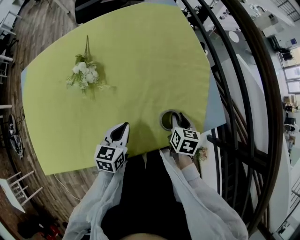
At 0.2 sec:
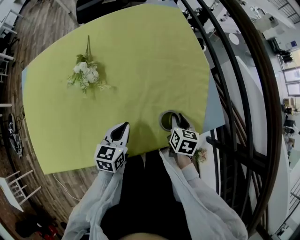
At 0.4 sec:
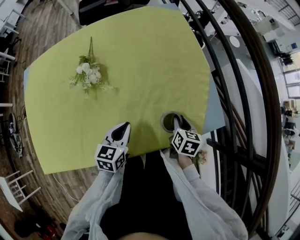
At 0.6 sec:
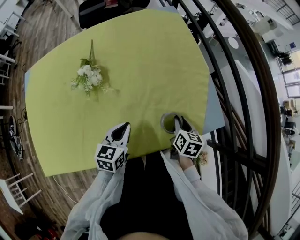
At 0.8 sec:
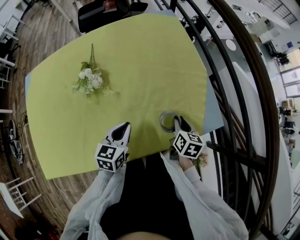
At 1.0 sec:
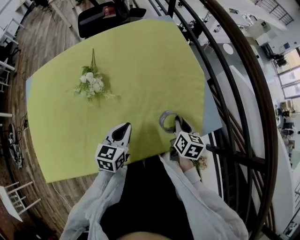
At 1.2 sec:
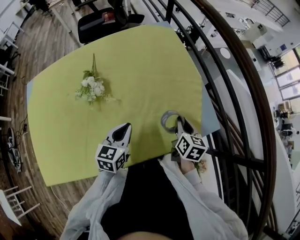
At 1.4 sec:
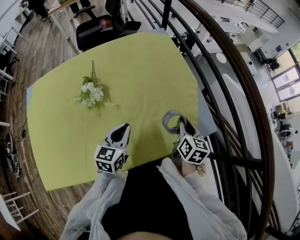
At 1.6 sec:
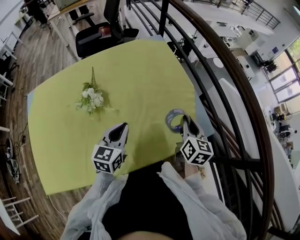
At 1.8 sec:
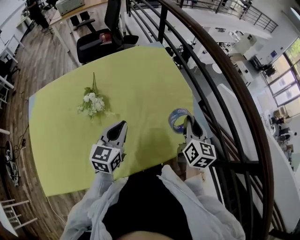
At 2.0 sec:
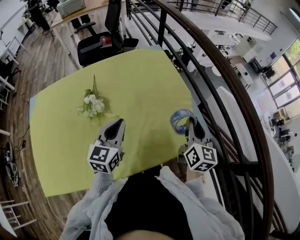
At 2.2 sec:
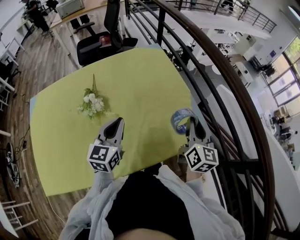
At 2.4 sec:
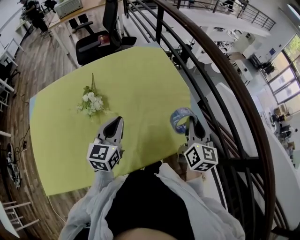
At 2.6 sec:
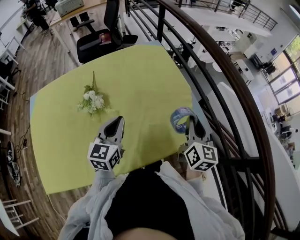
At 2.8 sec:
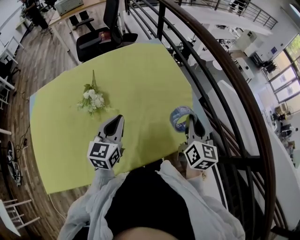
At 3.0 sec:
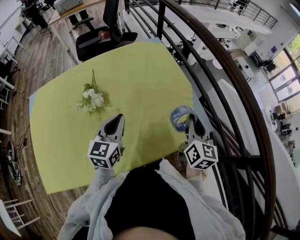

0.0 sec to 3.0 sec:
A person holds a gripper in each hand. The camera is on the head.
0.0 sec to 1.6 sec: The left gripper heads upward, covering about 10 cm. Meanwhile the right gripper goes about 20 cm upward, and rotates roughly 30 degrees.
1.6 sec to 3.0 sec: Both grippers move upward, roughly 5 cm.

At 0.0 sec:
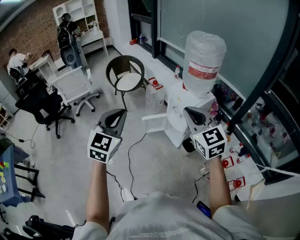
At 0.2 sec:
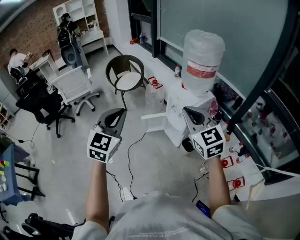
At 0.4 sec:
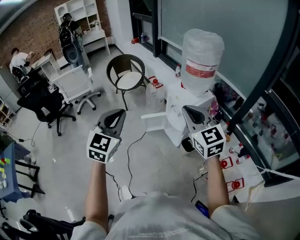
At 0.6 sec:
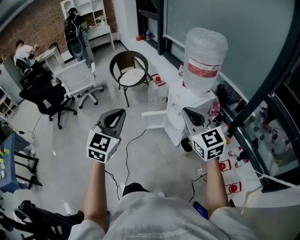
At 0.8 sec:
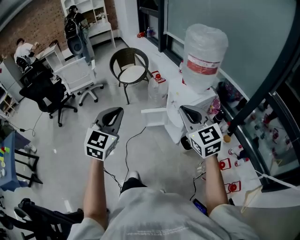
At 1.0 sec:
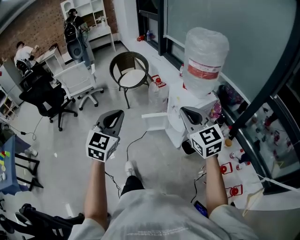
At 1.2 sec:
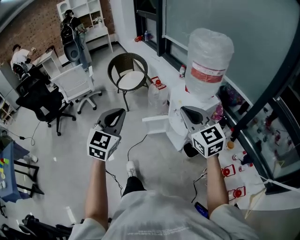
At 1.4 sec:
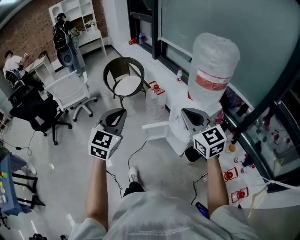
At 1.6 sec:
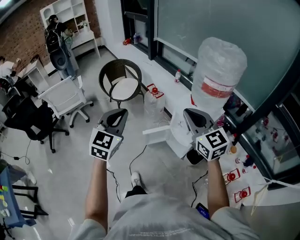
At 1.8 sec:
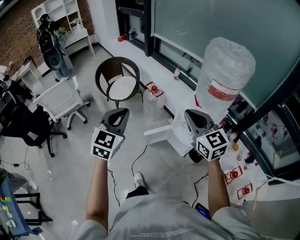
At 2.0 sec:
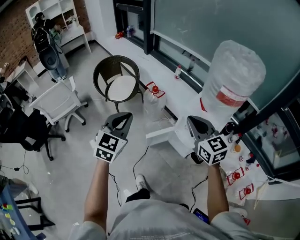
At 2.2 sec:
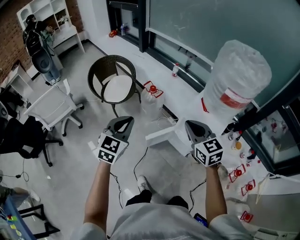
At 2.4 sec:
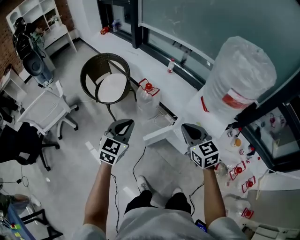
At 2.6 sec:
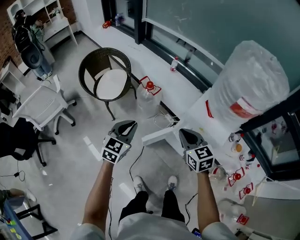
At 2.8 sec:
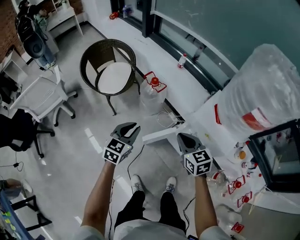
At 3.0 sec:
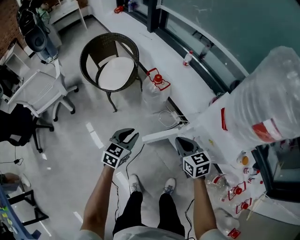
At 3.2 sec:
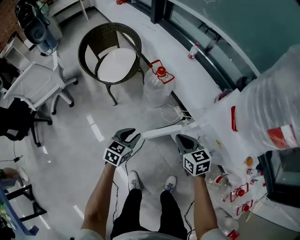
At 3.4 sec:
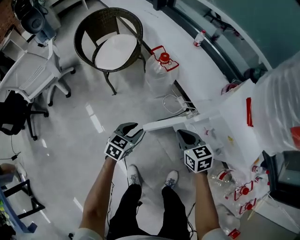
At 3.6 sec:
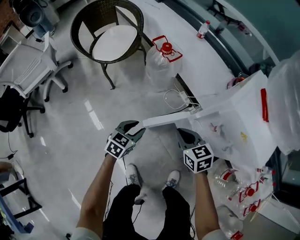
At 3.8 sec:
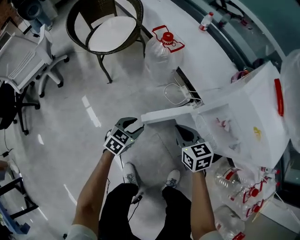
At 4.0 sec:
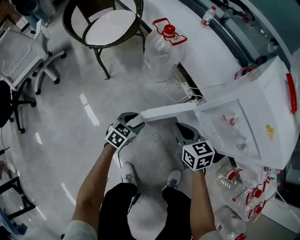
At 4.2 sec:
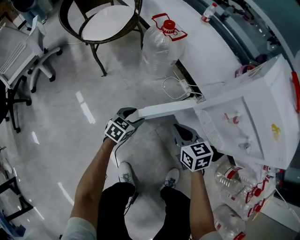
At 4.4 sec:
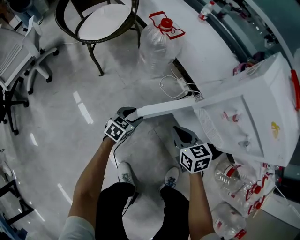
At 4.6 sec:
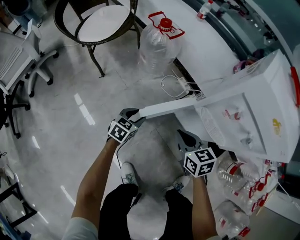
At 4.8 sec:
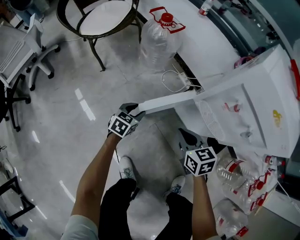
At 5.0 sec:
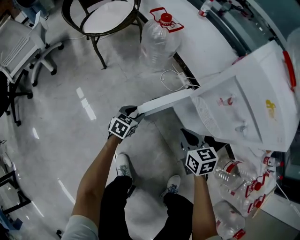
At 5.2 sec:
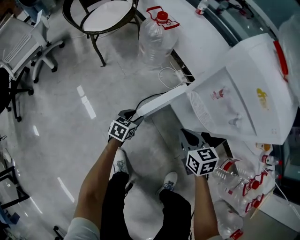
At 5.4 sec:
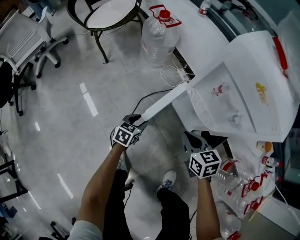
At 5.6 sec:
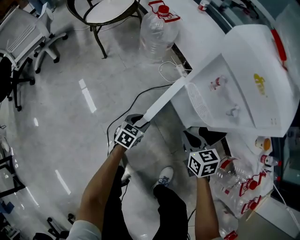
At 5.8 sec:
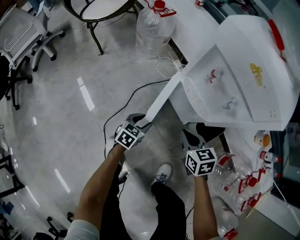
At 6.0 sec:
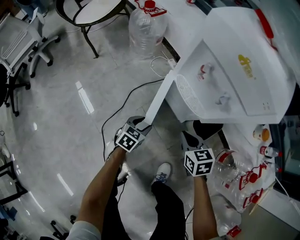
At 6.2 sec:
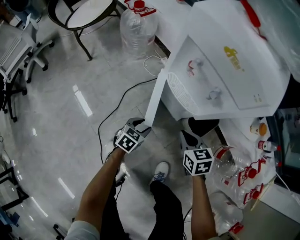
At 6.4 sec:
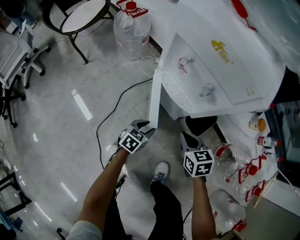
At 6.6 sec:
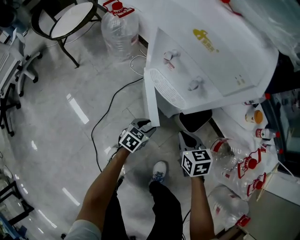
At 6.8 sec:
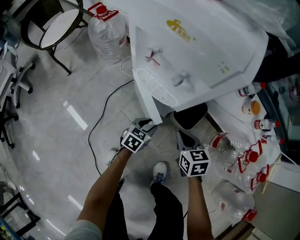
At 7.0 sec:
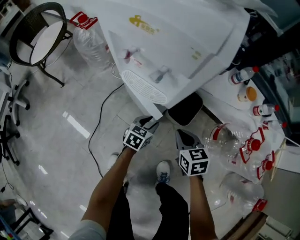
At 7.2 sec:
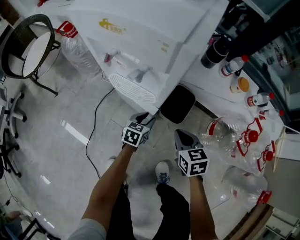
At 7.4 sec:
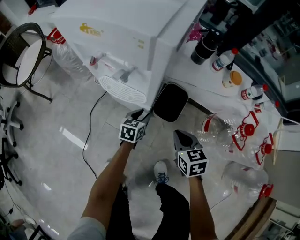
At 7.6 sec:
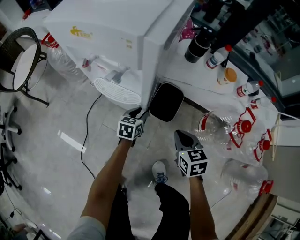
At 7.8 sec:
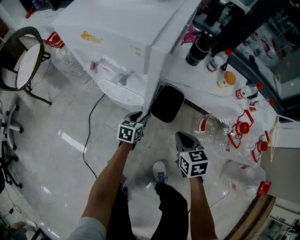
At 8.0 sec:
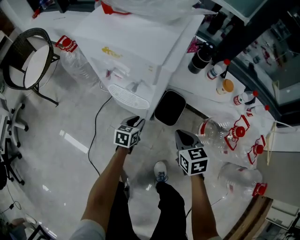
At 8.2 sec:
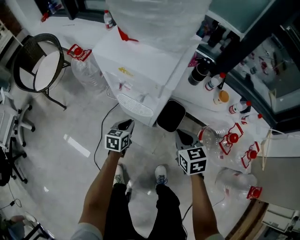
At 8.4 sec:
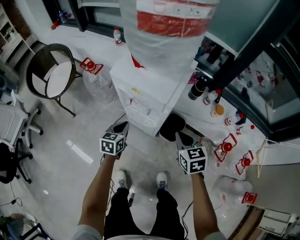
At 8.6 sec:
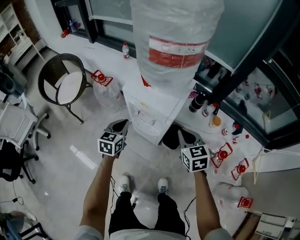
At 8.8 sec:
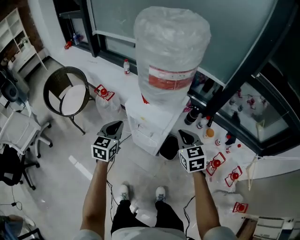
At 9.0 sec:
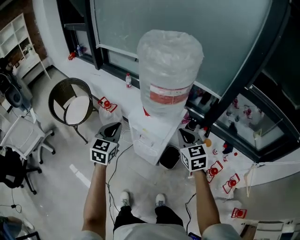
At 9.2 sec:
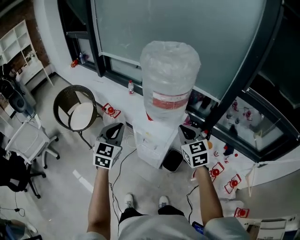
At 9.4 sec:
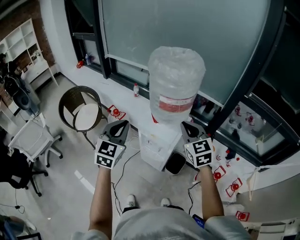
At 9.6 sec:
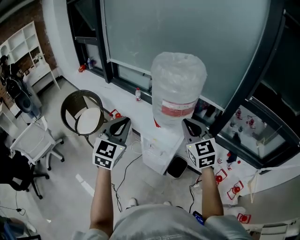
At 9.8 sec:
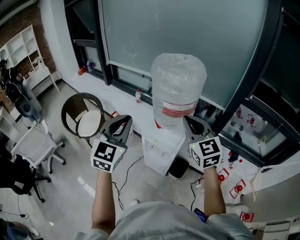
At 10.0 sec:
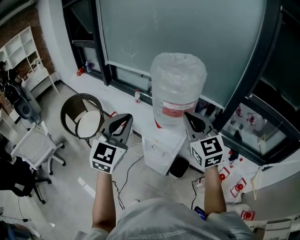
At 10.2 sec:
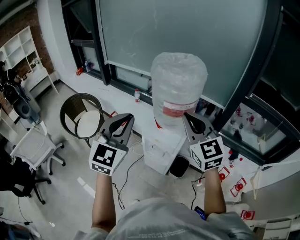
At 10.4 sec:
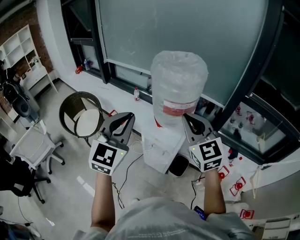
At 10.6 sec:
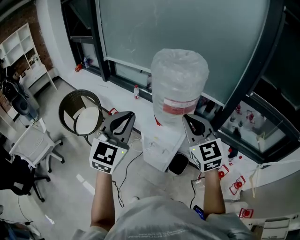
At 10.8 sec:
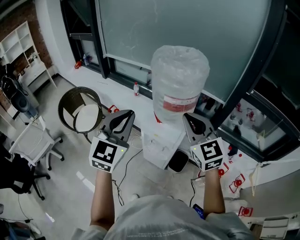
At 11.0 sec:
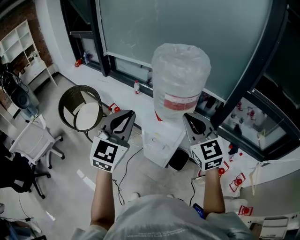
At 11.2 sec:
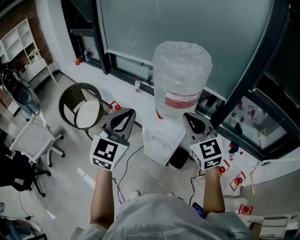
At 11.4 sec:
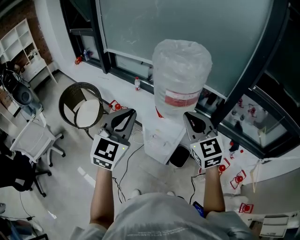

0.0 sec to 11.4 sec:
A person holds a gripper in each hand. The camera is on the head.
0.0 sec to 1.4 sec: The grippers both shift forward by roughly 15 cm.
1.4 sec to 2.8 sec: The left gripper heads forward and downward, covering about 40 cm, and changes its angle by approximately 30 degrees, while the right gripper heads downward and forward, covering some 40 cm, and rotates roughly 30 degrees.
2.8 sec to 4.2 sec: The two grippers go some 40 cm downward. The left gripper swivels some 20 degrees, and opens.
4.2 sec to 5.6 sec: The left gripper heads backward and to the right, covering some 20 cm, while the right gripper is displaced to the right and backward by about 20 cm.
5.6 sec to 7.2 sec: The left gripper changes place by roughly 30 cm, and turns by roughly 20 degrees. The right gripper moves about 25 cm, and swivels approximately 30 degrees.
7.2 sec to 8.6 sec: The left gripper heads upward and to the left, covering some 50 cm, swivels roughly 20 degrees, and closes up. The right gripper is displaced upward by roughly 40 cm.
8.6 sec to 10.0 sec: The two grippers go roughly 40 cm upward. The right gripper rotates approximately 30 degrees. Meanwhile the left gripper rotates approximately 40 degrees.
10.0 sec to 11.4 sec: The grippers move only a little.

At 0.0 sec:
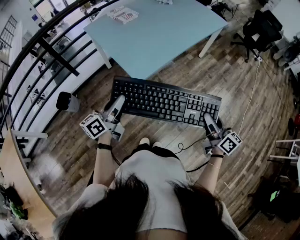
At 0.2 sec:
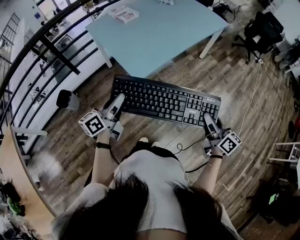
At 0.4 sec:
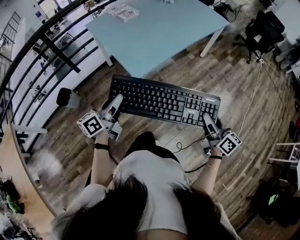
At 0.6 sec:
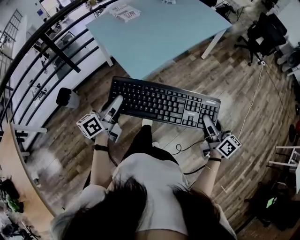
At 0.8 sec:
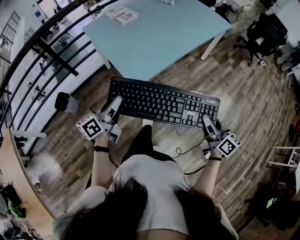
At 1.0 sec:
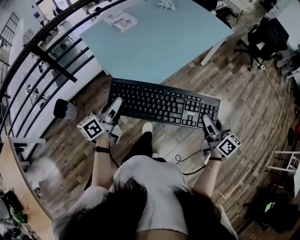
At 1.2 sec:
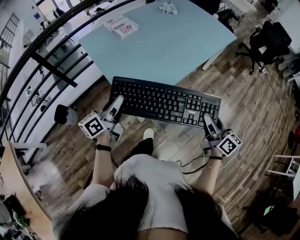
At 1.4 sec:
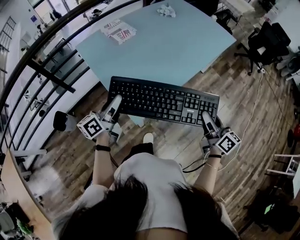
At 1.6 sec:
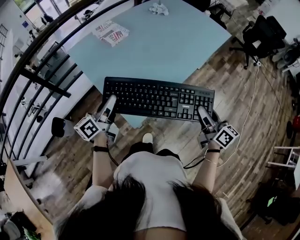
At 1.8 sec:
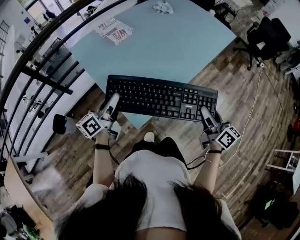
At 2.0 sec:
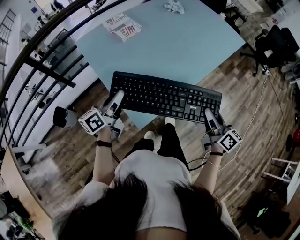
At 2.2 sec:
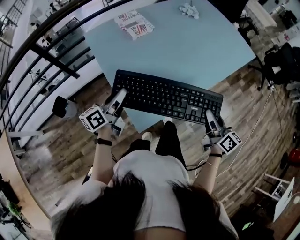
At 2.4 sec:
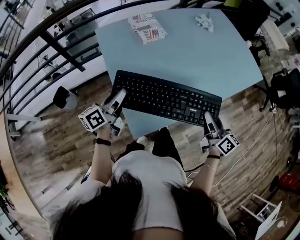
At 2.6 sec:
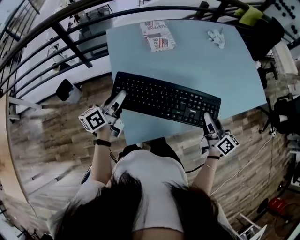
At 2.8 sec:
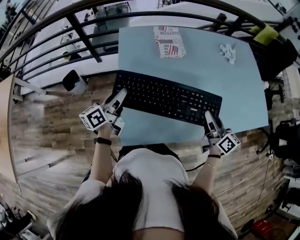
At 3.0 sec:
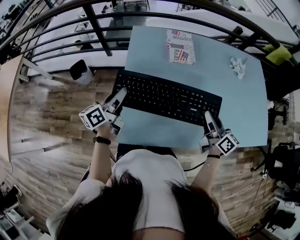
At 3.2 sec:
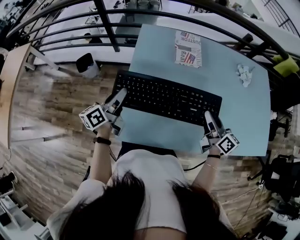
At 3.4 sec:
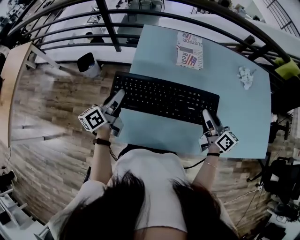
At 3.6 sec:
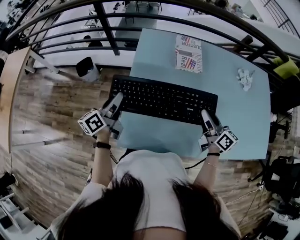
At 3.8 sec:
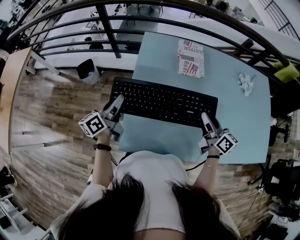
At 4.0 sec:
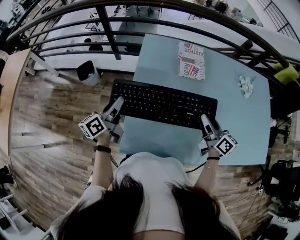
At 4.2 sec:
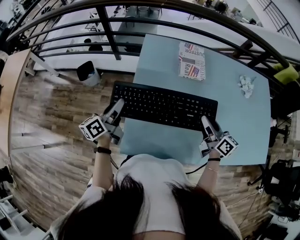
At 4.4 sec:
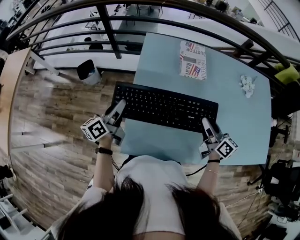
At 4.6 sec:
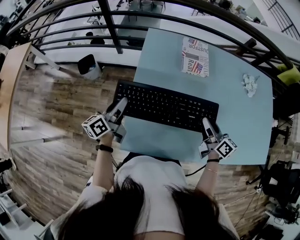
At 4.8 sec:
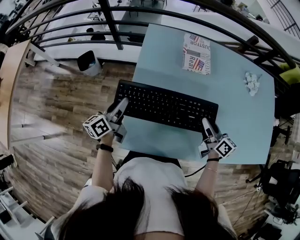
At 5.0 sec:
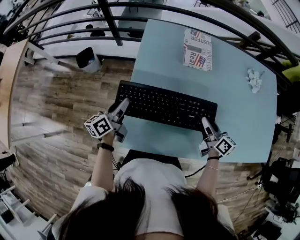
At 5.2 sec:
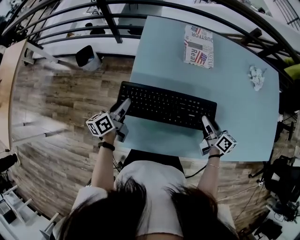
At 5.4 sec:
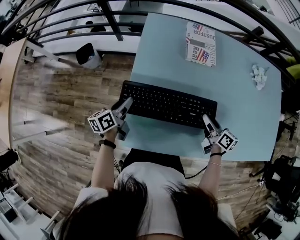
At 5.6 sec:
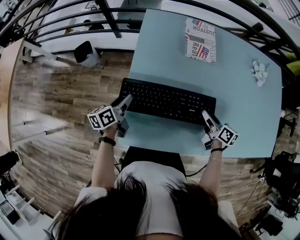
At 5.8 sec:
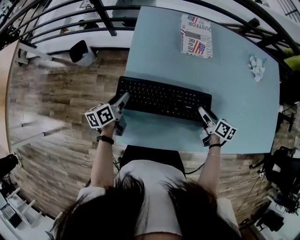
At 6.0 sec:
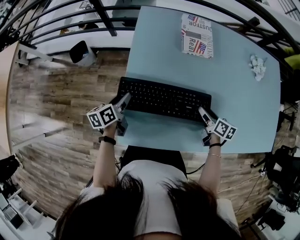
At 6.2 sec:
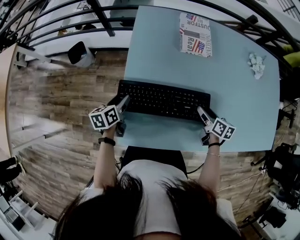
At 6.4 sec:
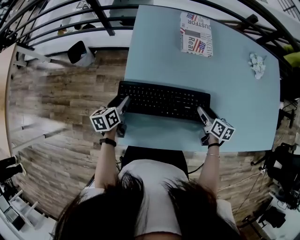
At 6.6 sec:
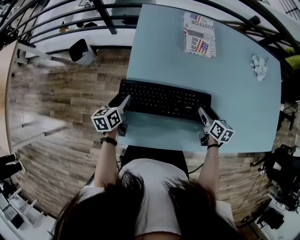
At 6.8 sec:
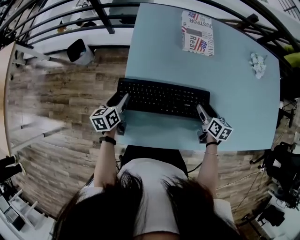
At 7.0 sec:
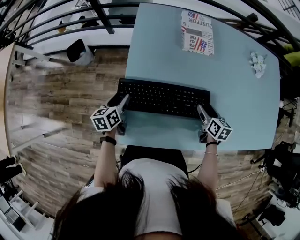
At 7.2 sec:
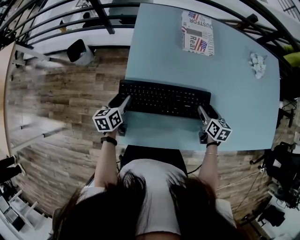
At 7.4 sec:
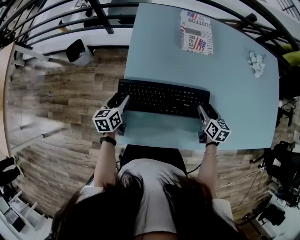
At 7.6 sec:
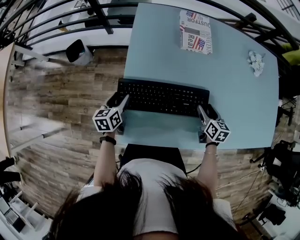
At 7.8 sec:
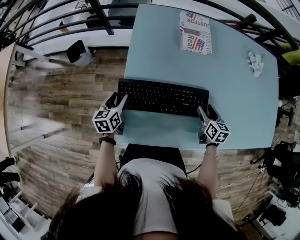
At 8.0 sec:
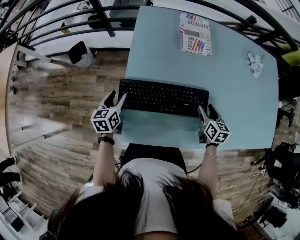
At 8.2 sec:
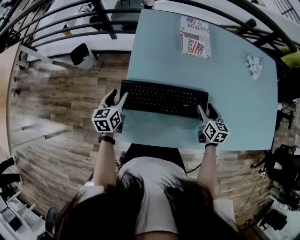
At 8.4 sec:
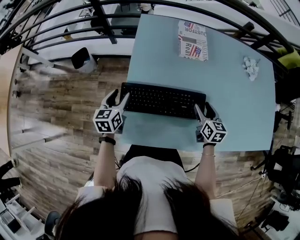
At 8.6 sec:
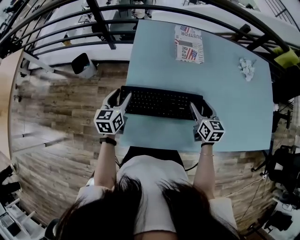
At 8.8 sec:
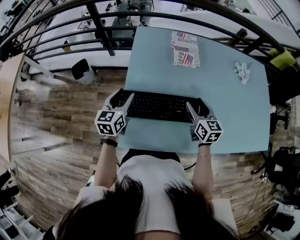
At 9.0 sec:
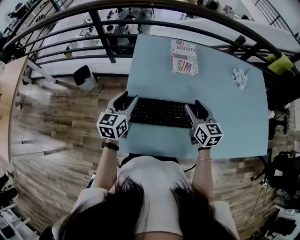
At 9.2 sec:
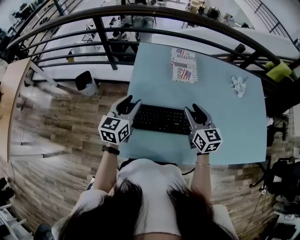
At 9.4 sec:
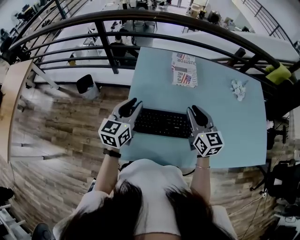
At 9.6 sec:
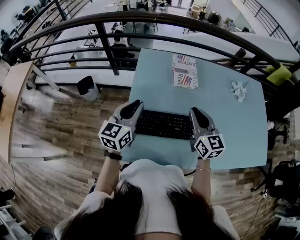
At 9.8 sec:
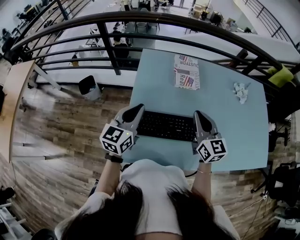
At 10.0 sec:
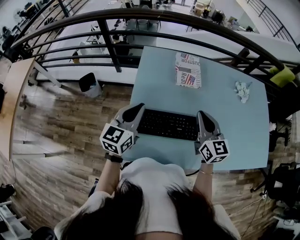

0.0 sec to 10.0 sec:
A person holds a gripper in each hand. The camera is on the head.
0.0 sec to 1.4 sec: The grippers both shift forward by about 25 cm.
1.4 sec to 2.8 sec: The left gripper moves roughly 15 cm, and changes its angle by some 30 degrees. Meanwhile the right gripper changes place by roughly 35 cm, and changes its angle by some 30 degrees.
2.8 sec to 4.2 sec: The right gripper heads forward, covering roughly 10 cm; the left gripper heads to the left, covering approximately 5 cm.
4.2 sec to 5.8 sec: The grippers both shift downward by some 15 cm. The left gripper changes its angle by about 20 degrees; the right gripper rotates about 30 degrees.
5.8 sec to 7.2 sec: The right gripper turns by about 30 degrees.
7.2 sec to 8.6 sec: The two grippers go about 10 cm upward. The left gripper rotates approximately 20 degrees.
8.6 sec to 10.0 sec: The left gripper is displaced upward and to the right by about 15 cm, rotates roughly 20 degrees, and closes its fingers, while the right gripper goes approximately 15 cm upward, rotates some 20 degrees, and closes up.
